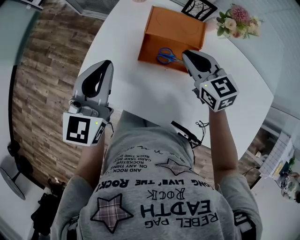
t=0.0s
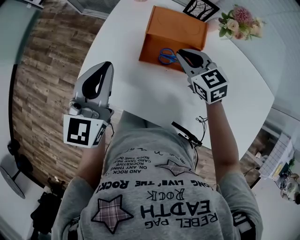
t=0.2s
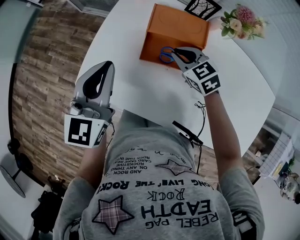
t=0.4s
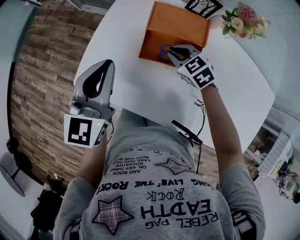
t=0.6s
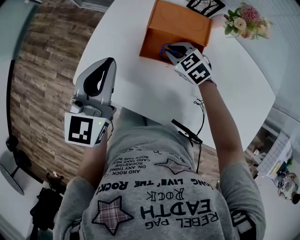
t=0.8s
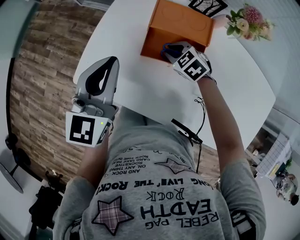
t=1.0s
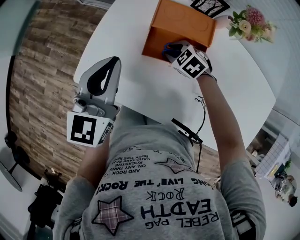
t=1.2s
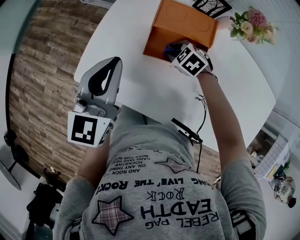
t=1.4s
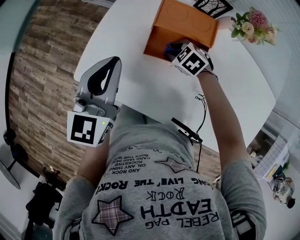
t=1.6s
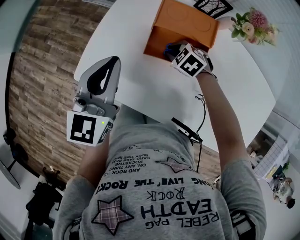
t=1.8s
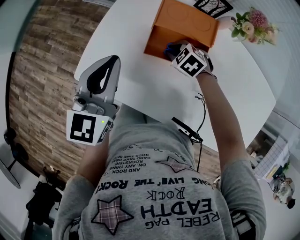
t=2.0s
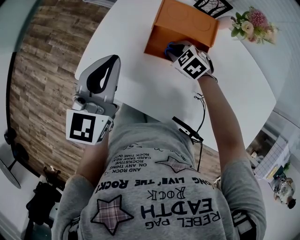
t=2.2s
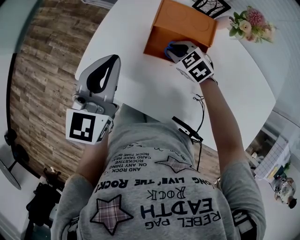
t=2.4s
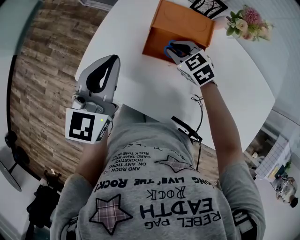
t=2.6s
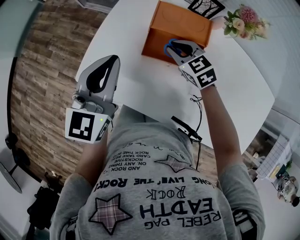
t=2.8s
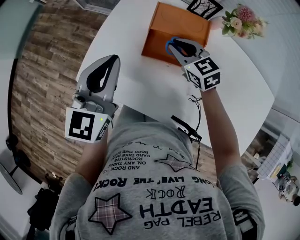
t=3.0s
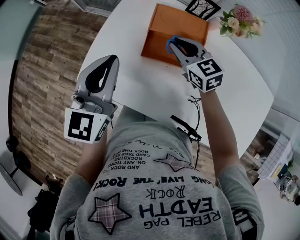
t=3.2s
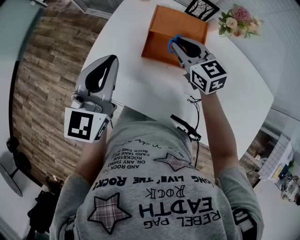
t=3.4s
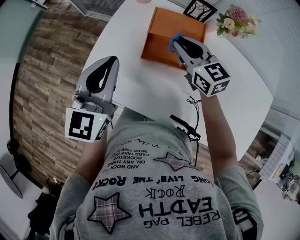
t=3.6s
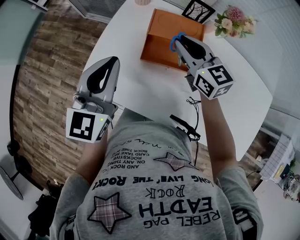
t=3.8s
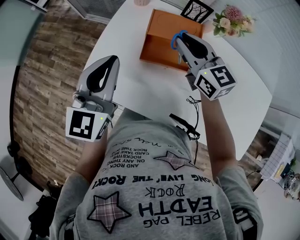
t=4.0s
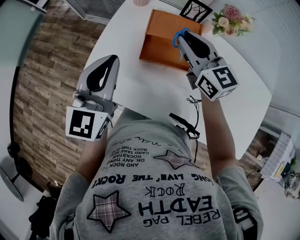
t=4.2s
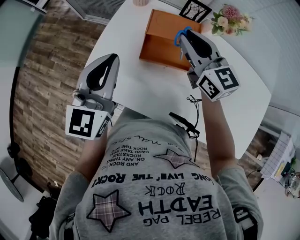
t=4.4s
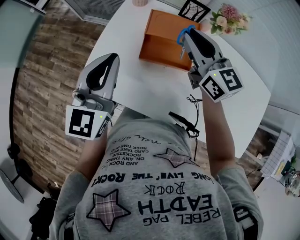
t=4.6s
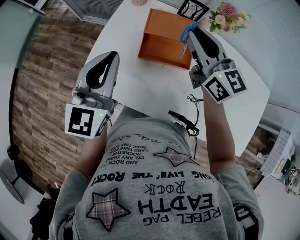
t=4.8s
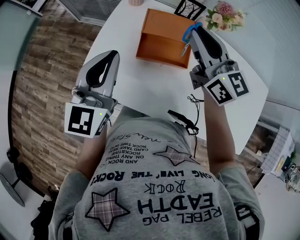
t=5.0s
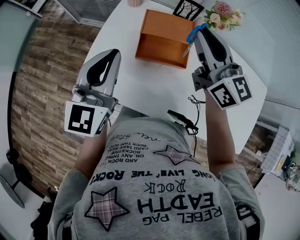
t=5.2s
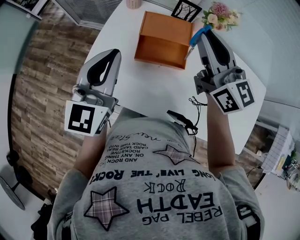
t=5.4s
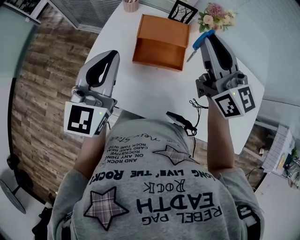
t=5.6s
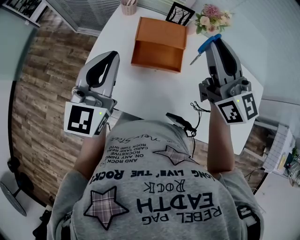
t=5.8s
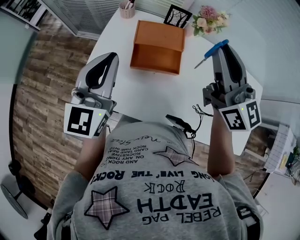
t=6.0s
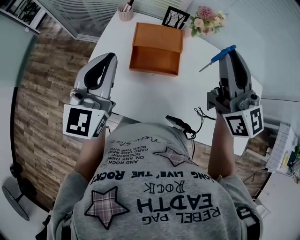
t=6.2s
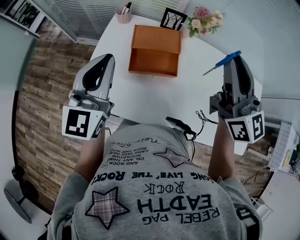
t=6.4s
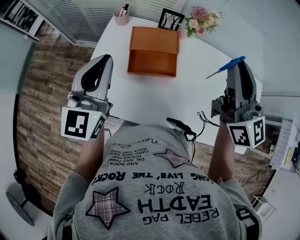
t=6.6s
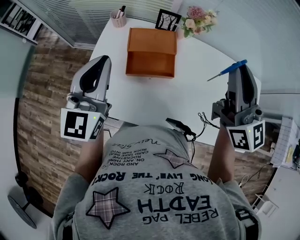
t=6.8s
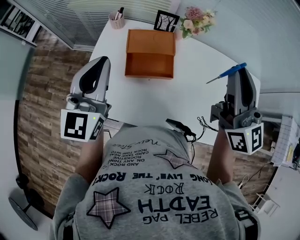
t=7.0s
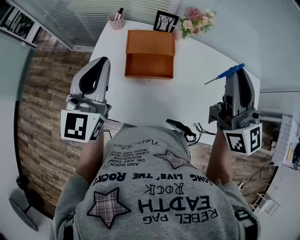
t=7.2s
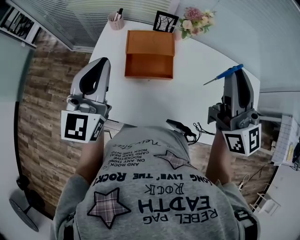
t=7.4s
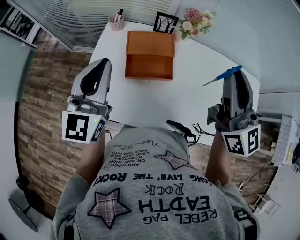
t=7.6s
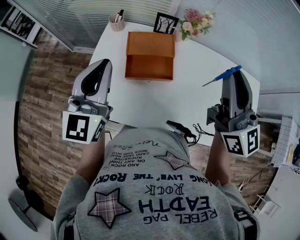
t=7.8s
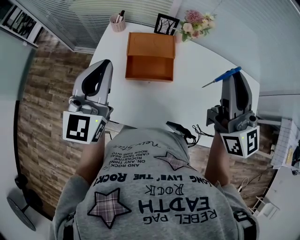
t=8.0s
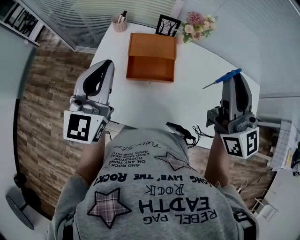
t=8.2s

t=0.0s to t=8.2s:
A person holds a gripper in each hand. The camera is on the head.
t=0.0s to t=1.6s: The right gripper heads downward, covering about 20 cm, tips its fingers downward by roughly 30 degrees, and opens its fingers.
t=1.6s to t=3.2s: The right gripper travels upward by roughly 15 cm, and tilts its fingers roughly 40 degrees upward.
t=3.2s to t=5.0s: The right gripper shifts some 20 cm upward, and rotates approximately 30 degrees.
t=5.0s to t=6.6s: The left gripper moves upward, roughly 5 cm, while the right gripper goes some 20 cm to the right, upward and backward, and changes its angle by about 20 degrees.
t=6.6s to t=8.2s: The grippers move only a little.

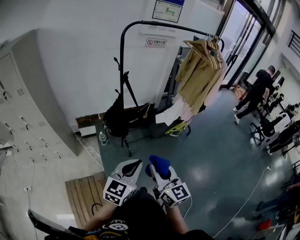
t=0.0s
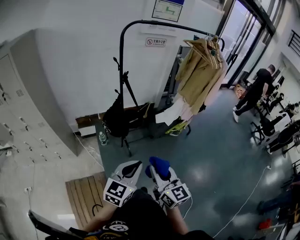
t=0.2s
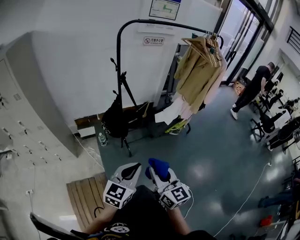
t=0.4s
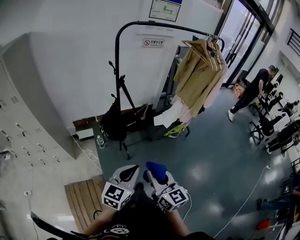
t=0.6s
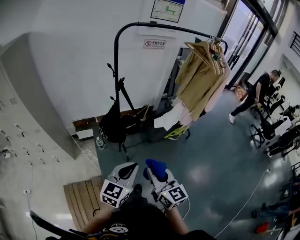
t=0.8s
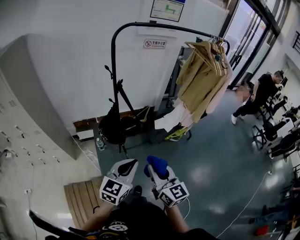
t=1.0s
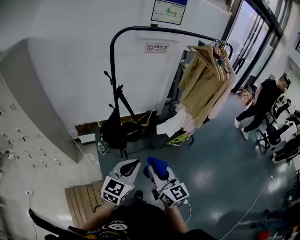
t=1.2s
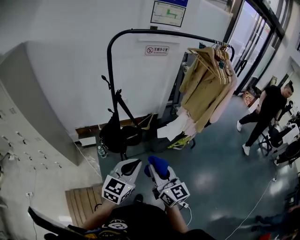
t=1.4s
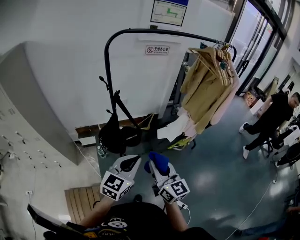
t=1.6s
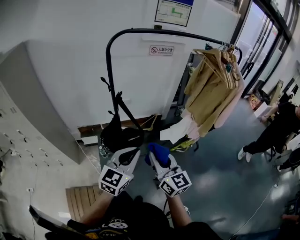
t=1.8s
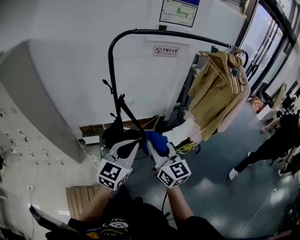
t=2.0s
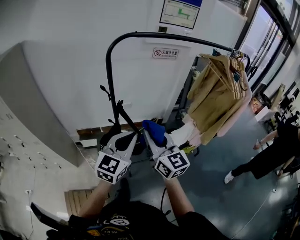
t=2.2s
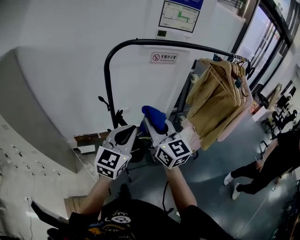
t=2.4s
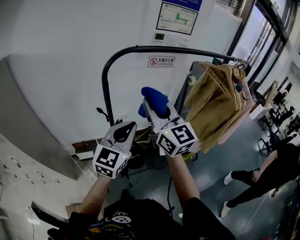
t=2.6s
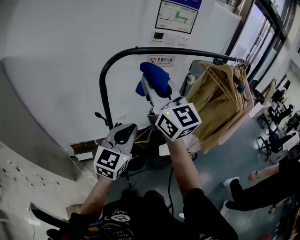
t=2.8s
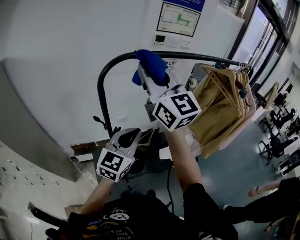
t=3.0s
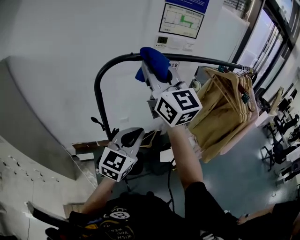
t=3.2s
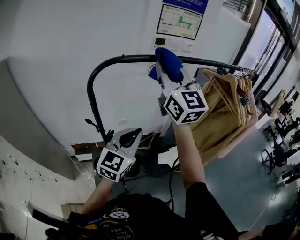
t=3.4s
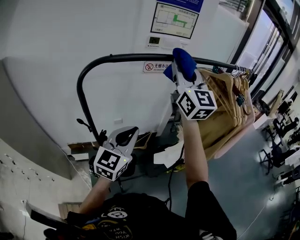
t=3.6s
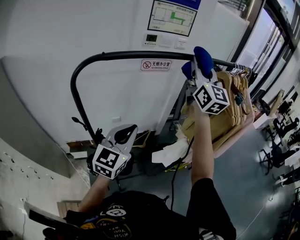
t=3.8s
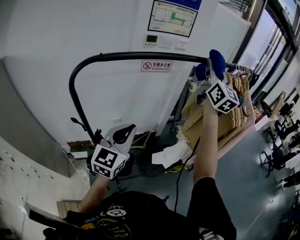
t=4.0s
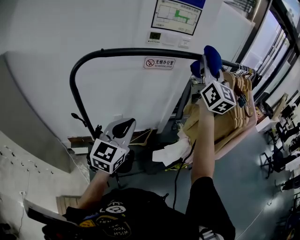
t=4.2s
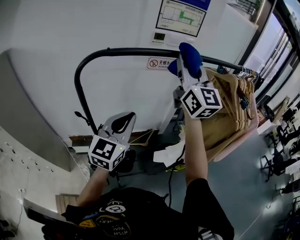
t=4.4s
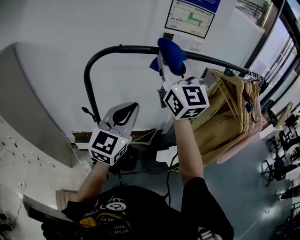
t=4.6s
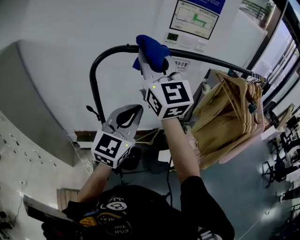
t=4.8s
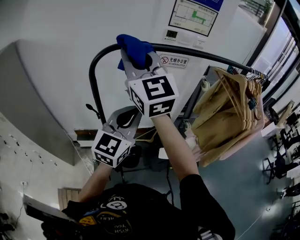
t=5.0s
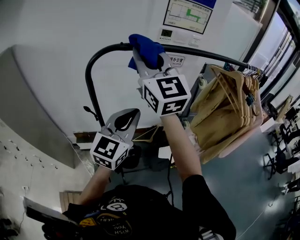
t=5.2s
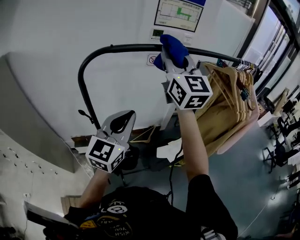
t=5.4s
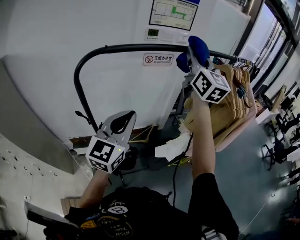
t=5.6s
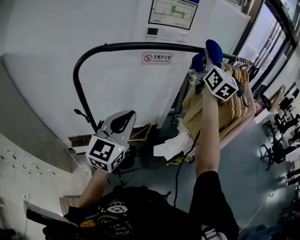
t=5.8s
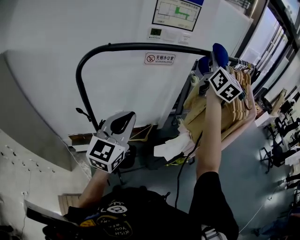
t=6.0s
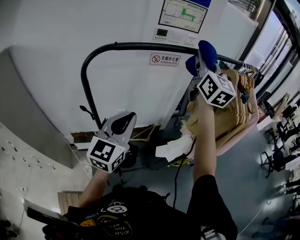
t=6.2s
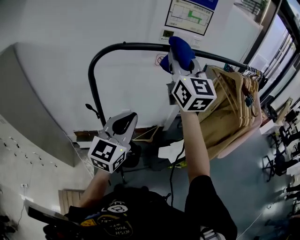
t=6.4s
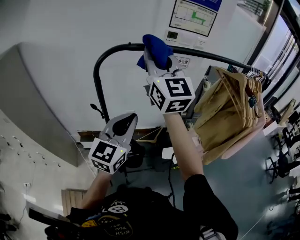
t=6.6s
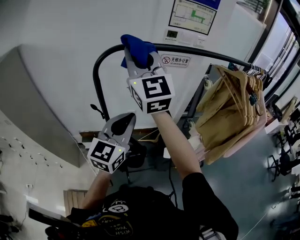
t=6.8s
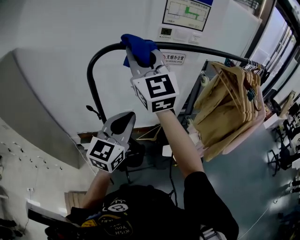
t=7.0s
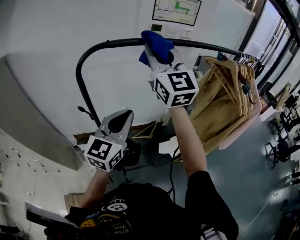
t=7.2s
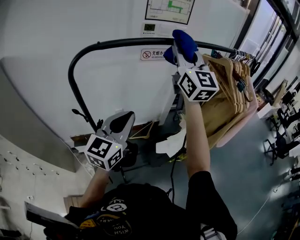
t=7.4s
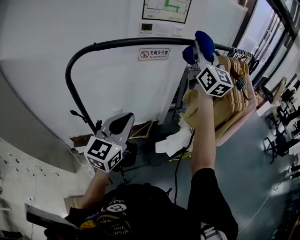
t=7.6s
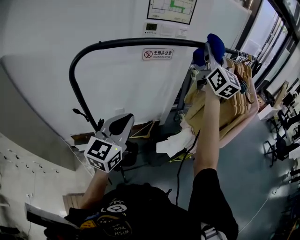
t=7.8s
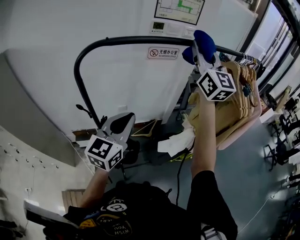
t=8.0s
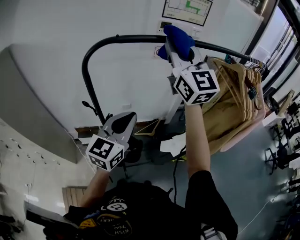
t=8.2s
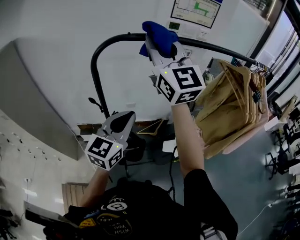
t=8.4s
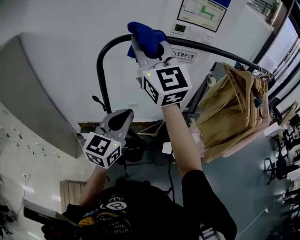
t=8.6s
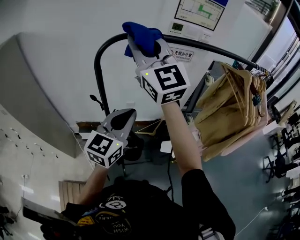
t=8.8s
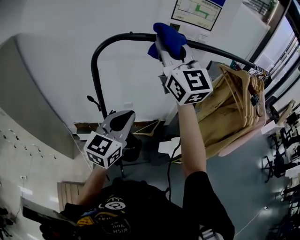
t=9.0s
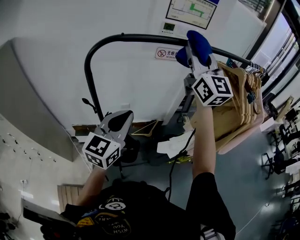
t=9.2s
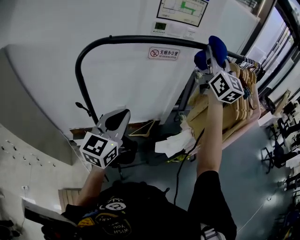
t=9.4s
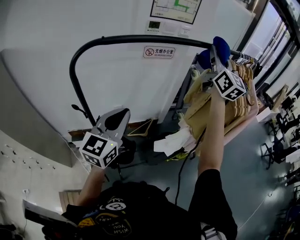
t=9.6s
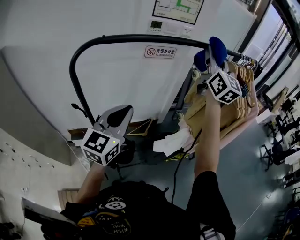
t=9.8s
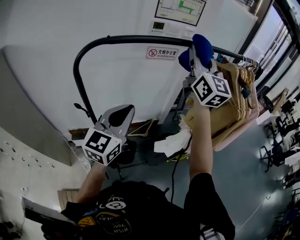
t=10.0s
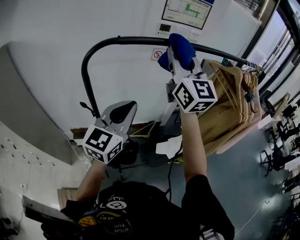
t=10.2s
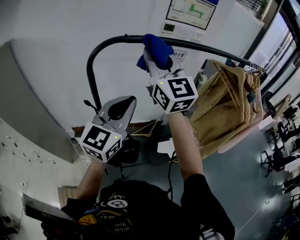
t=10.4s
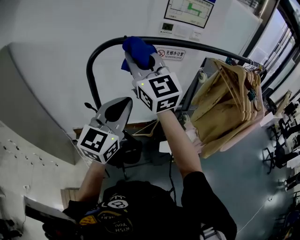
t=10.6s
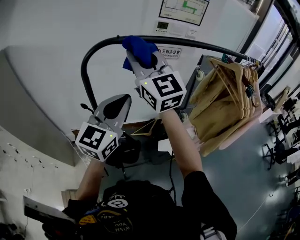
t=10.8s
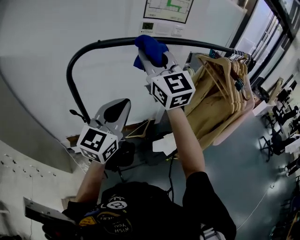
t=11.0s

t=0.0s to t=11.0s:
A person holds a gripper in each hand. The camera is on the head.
t=0.0s to t=1.6s: Both grippers move forward, about 25 cm.
t=1.6s to t=3.2s: The right gripper is displaced forward and upward by about 50 cm, and turns by approximately 30 degrees; the left gripper travels forward by some 35 cm.
t=3.2s to t=4.8s: The left gripper heads upward, covering about 5 cm; the right gripper moves some 35 cm to the right and comes back.
t=4.8s to t=6.2s: The right gripper swings left and right, some 35 cm each way, with 2 reversals, and swivels about 30 degrees.
t=6.2s to t=7.8s: The right gripper travels to the left and back again, roughly 25 cm each way.
t=7.8s to t=9.4s: The right gripper travels to the left and back again, approximately 35 cm each way.
t=9.4s to t=11.0s: The left gripper moves some 5 cm. The right gripper moves left and right over about 35 cm, changing direction 2 times.

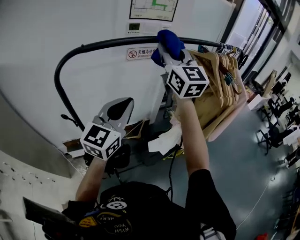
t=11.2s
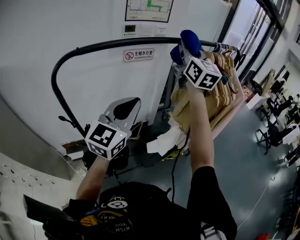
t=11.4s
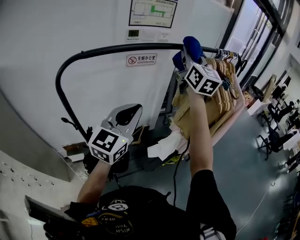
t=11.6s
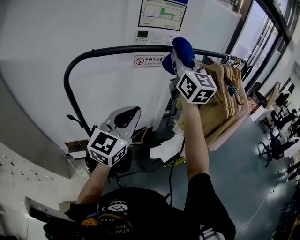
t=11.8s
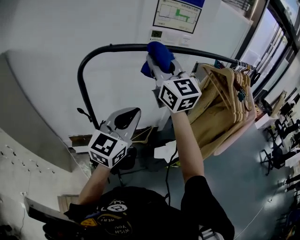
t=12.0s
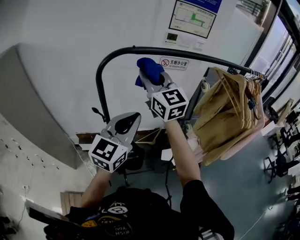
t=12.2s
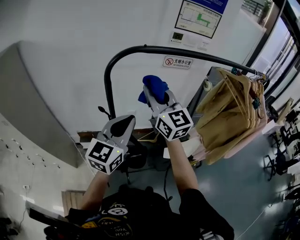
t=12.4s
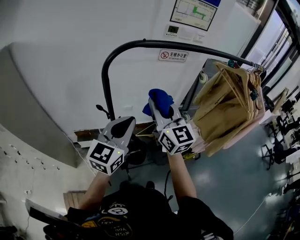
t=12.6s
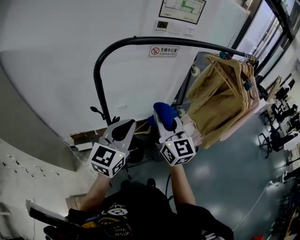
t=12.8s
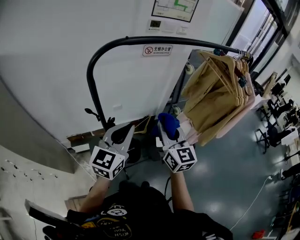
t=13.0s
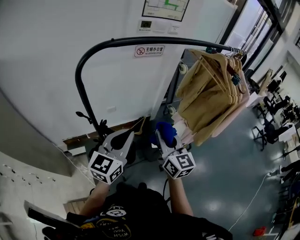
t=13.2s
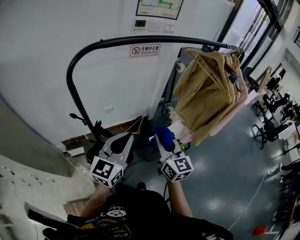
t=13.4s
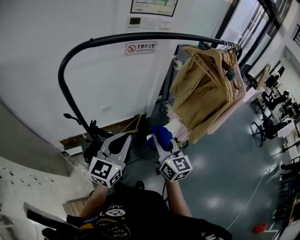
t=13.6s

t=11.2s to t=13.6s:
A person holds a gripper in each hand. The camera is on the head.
t=11.2s to t=12.4s: The left gripper moves to the left, approximately 15 cm, while the right gripper travels to the left, downward and backward by approximately 25 cm, and rotates approximately 20 degrees.
t=12.4s to t=13.6s: The left gripper shifts roughly 15 cm to the right and downward. The right gripper heads to the right, downward and backward, covering about 30 cm, and turns by approximately 30 degrees.

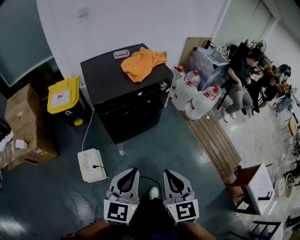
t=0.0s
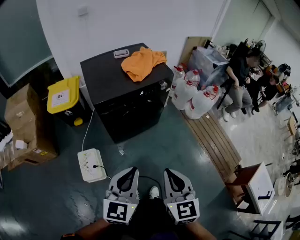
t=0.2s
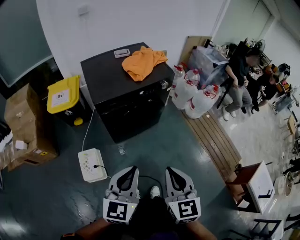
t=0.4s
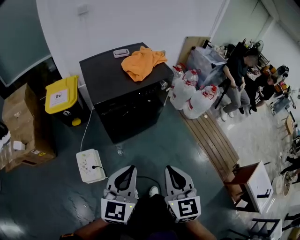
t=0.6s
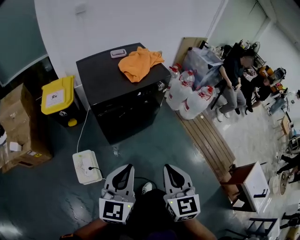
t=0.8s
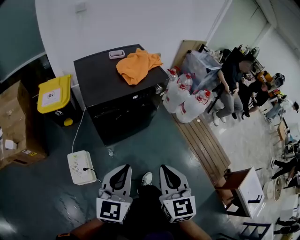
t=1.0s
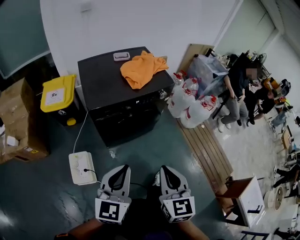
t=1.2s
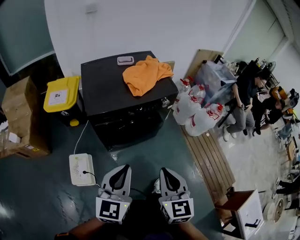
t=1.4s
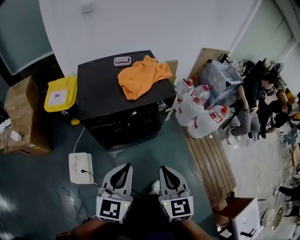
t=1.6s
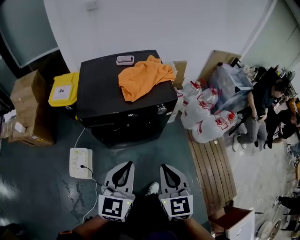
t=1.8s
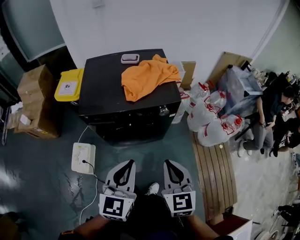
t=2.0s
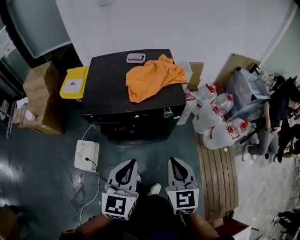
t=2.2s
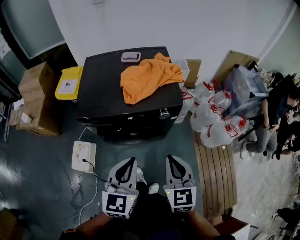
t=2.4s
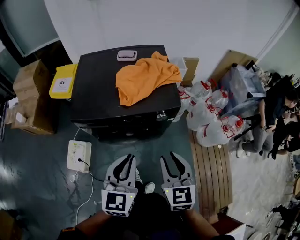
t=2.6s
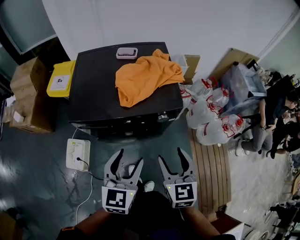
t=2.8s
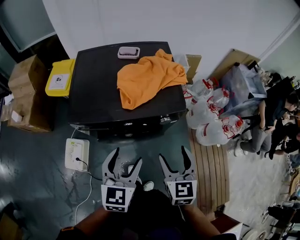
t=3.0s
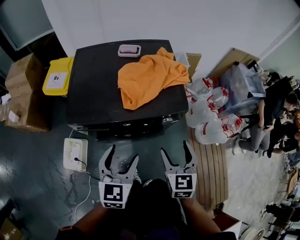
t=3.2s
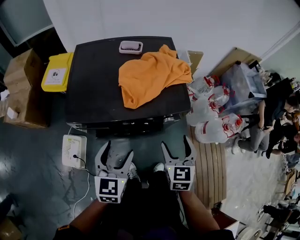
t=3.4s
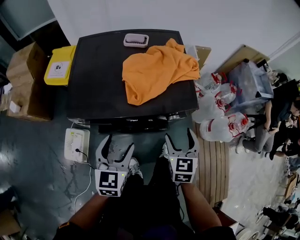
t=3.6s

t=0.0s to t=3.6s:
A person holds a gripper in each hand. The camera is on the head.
t=0.0s to t=1.8s: The grippers both shift forward and to the right by approximately 25 cm.
t=1.8s to t=3.6s: Both grippers travel together forward and downward, roughly 25 cm. The right gripper opens its fingers; the left gripper opens up.
